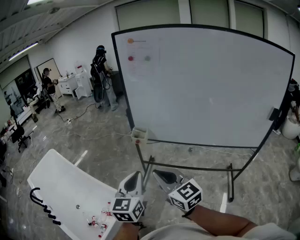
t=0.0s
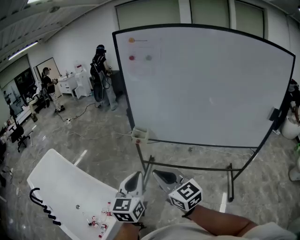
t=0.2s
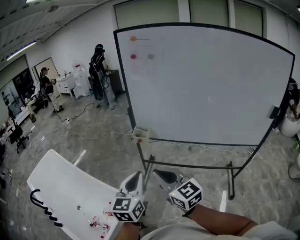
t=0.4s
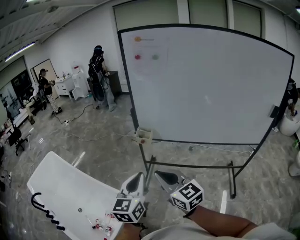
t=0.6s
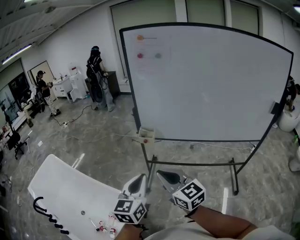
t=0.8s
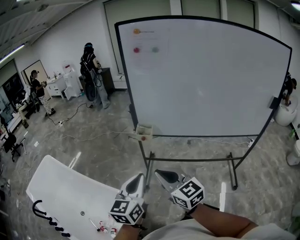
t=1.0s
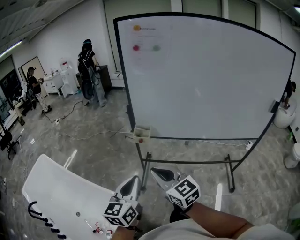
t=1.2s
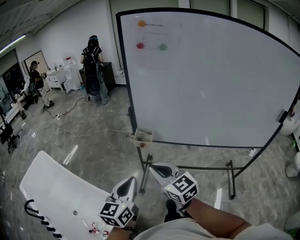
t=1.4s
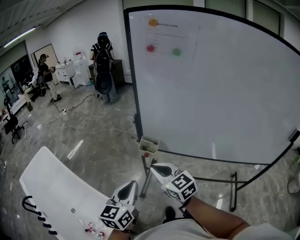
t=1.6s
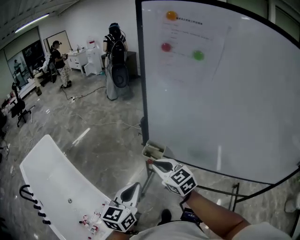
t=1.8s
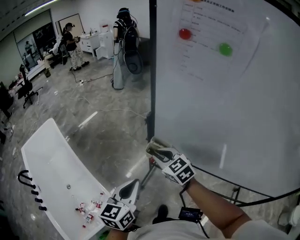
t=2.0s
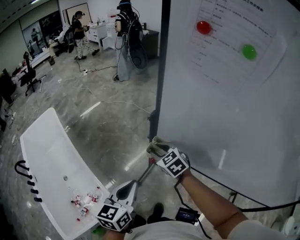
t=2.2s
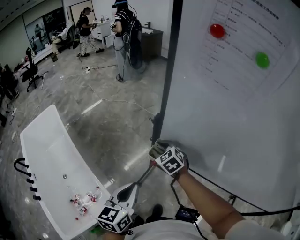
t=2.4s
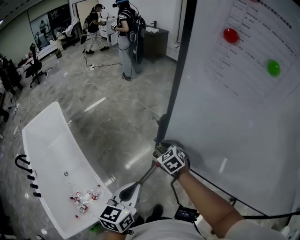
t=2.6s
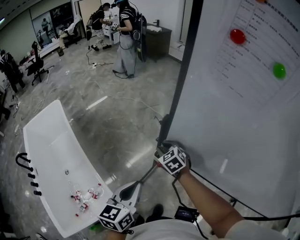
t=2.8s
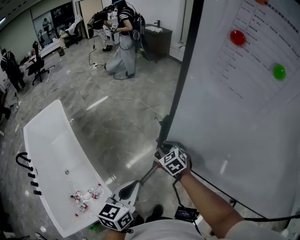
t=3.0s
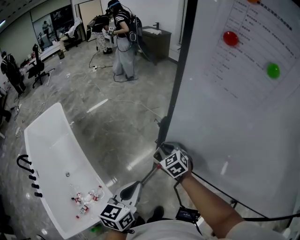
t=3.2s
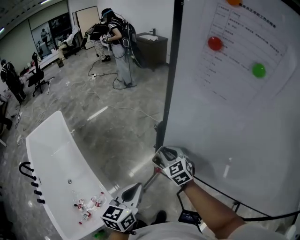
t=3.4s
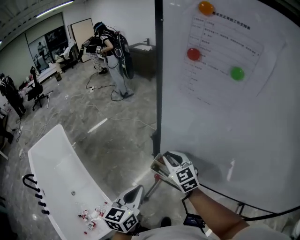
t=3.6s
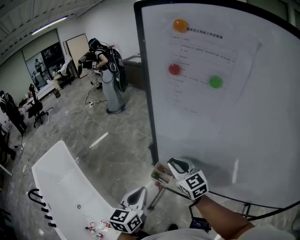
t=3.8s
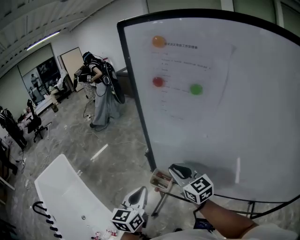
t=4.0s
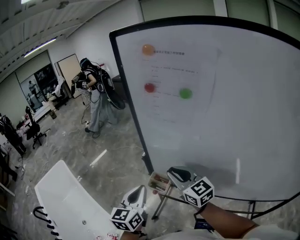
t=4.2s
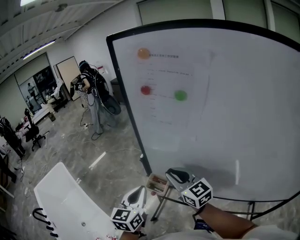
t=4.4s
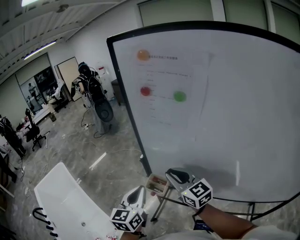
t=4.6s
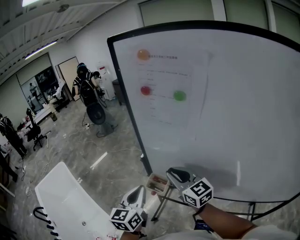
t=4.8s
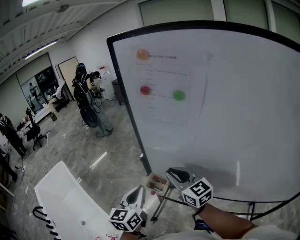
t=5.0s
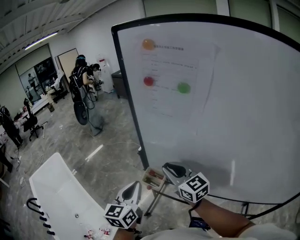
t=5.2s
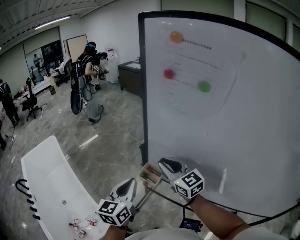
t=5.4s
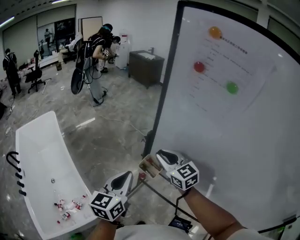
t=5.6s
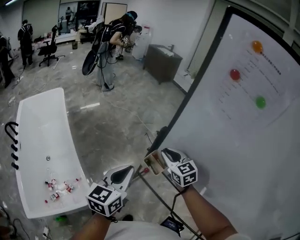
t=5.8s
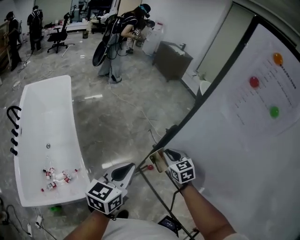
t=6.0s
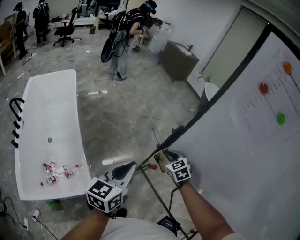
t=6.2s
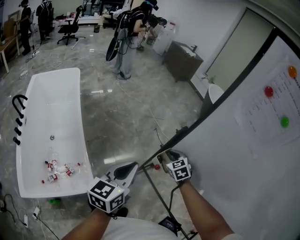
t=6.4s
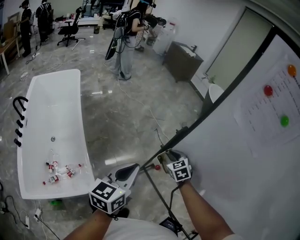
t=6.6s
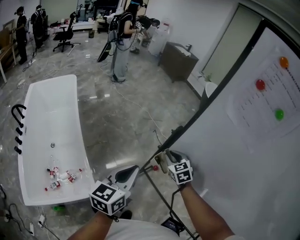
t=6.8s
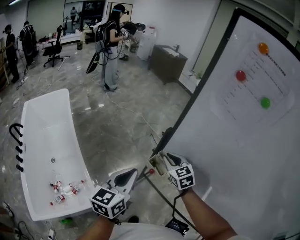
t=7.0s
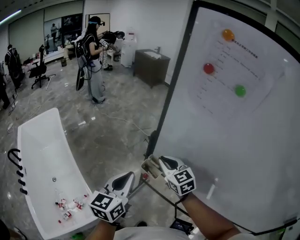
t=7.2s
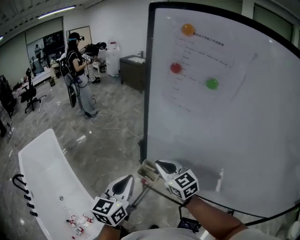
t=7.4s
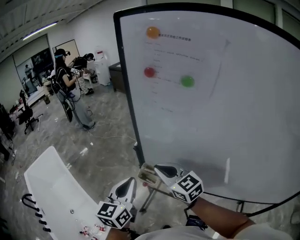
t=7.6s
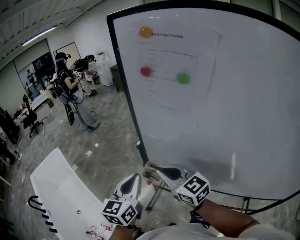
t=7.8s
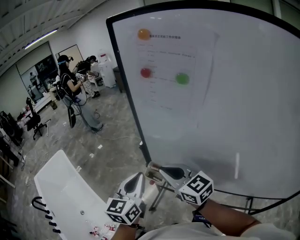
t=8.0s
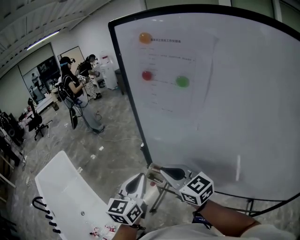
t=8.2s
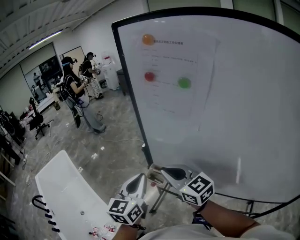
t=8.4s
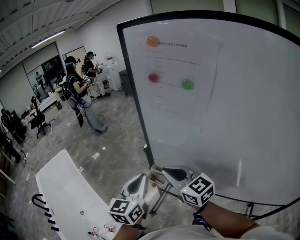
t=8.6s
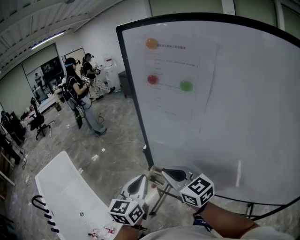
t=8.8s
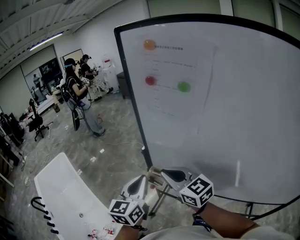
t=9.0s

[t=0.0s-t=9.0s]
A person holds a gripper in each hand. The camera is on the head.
t=0.0s to t=1.6s: The right gripper is displaced forward by some 30 cm. Meanwhile the left gripper travels forward and to the left by roughly 25 cm.
t=1.6s to t=3.0s: The left gripper travels forward and downward by approximately 15 cm, while the right gripper is displaced forward and downward by roughly 35 cm, and turns by roughly 40 degrees.
t=3.0s to t=4.4s: The left gripper shifts approximately 15 cm upward and to the right; the right gripper goes approximately 30 cm upward, backward and to the right, and angles its fingers upward, by roughly 40 degrees.
t=4.4s to t=6.0s: The left gripper is displaced to the left and downward by about 10 cm; the right gripper shifts some 20 cm downward, forward and to the left, and rotates roughly 40 degrees.
t=6.0s to t=7.6s: The right gripper moves upward and backward, some 20 cm, and rotates approximately 30 degrees; the left gripper travels to the right and upward by some 10 cm.
t=7.6s to t=9.0s: The right gripper moves approximately 5 cm.

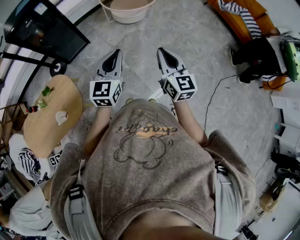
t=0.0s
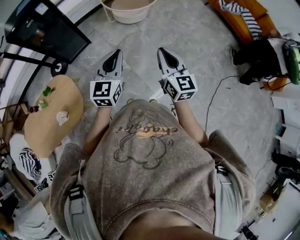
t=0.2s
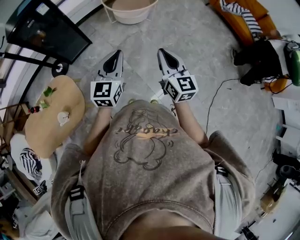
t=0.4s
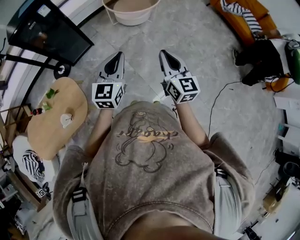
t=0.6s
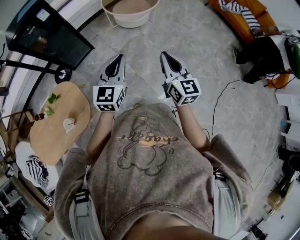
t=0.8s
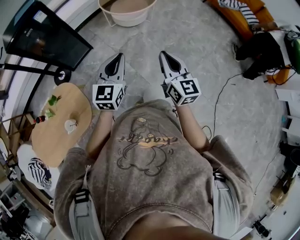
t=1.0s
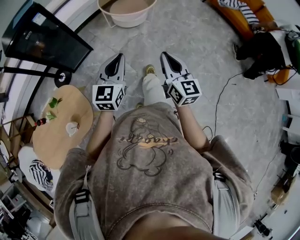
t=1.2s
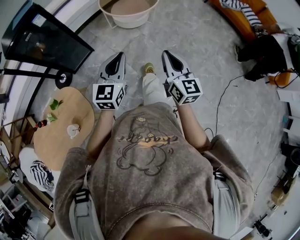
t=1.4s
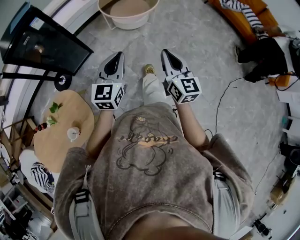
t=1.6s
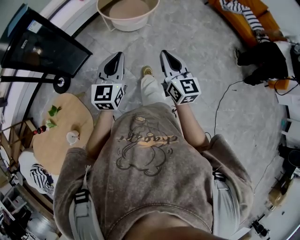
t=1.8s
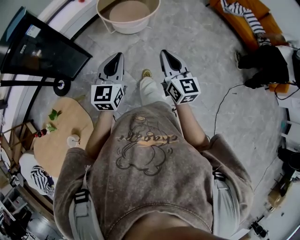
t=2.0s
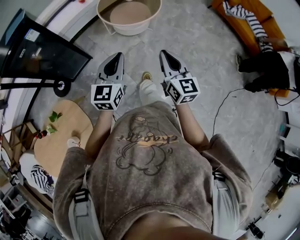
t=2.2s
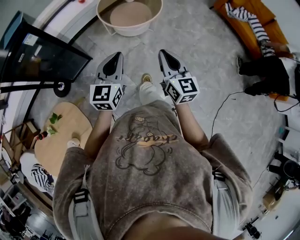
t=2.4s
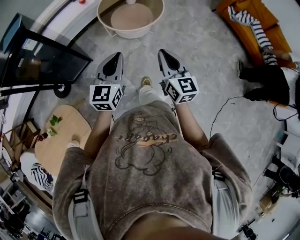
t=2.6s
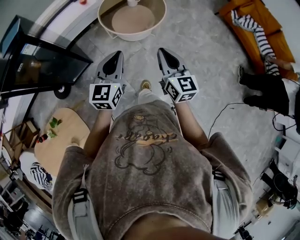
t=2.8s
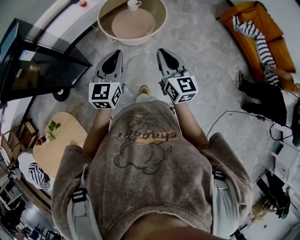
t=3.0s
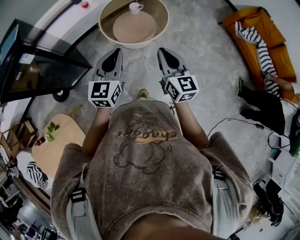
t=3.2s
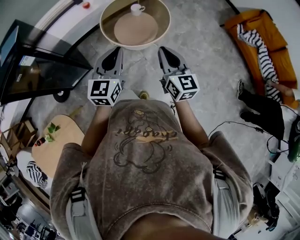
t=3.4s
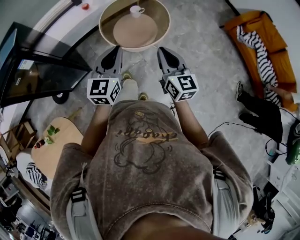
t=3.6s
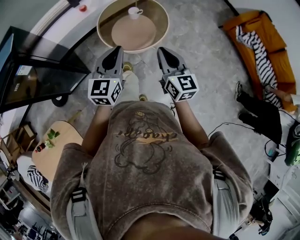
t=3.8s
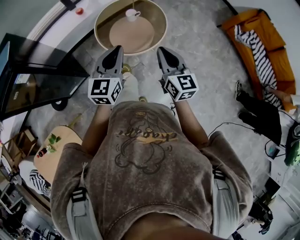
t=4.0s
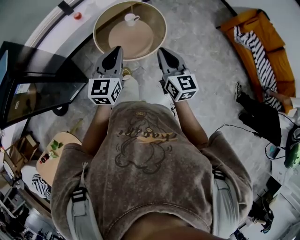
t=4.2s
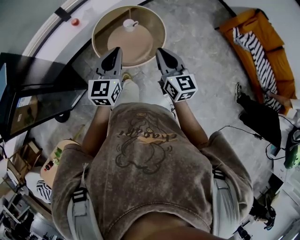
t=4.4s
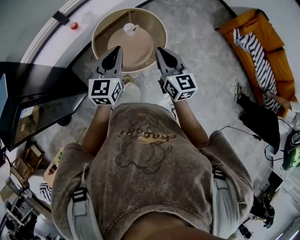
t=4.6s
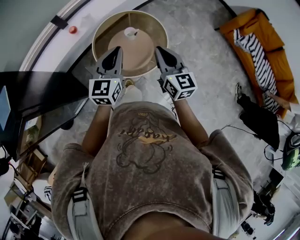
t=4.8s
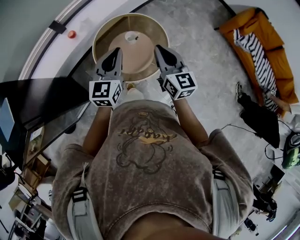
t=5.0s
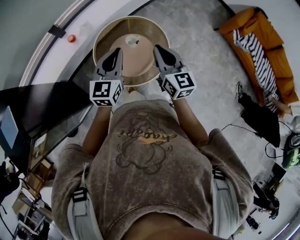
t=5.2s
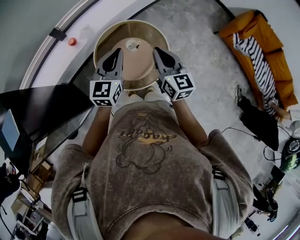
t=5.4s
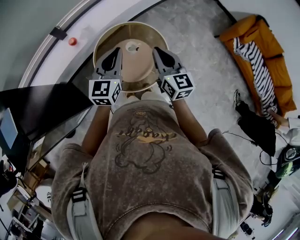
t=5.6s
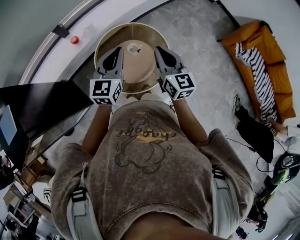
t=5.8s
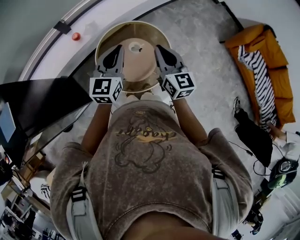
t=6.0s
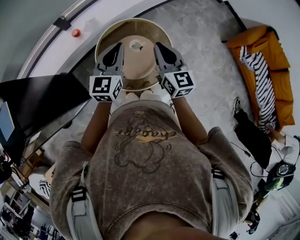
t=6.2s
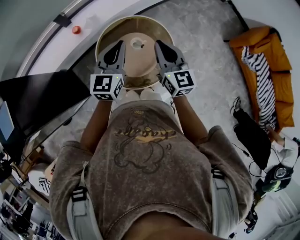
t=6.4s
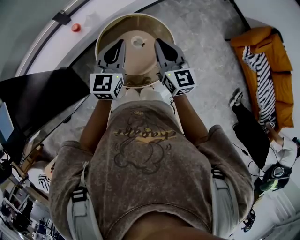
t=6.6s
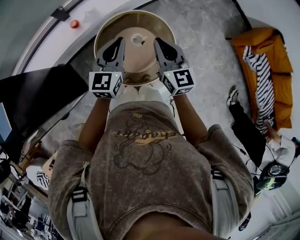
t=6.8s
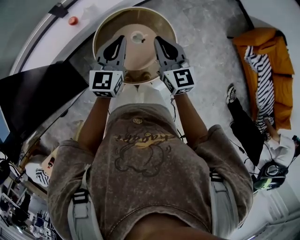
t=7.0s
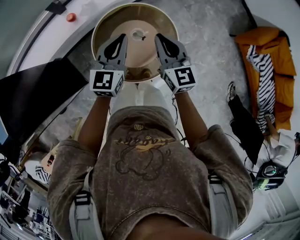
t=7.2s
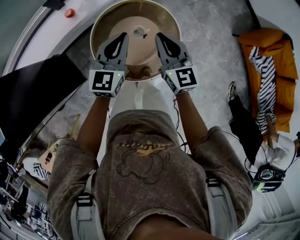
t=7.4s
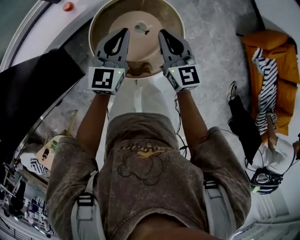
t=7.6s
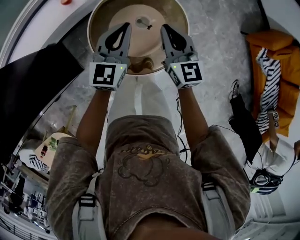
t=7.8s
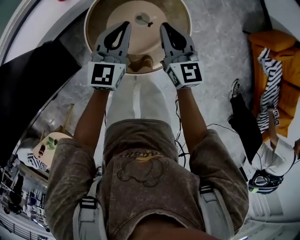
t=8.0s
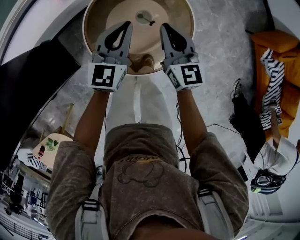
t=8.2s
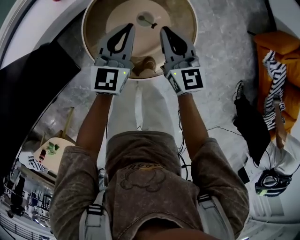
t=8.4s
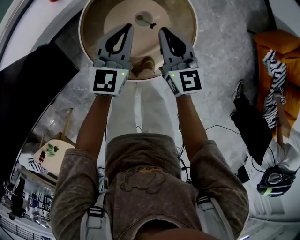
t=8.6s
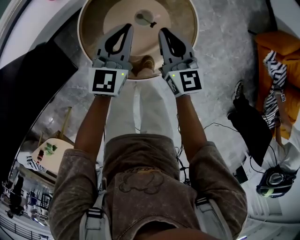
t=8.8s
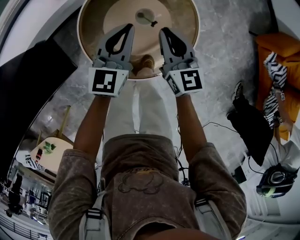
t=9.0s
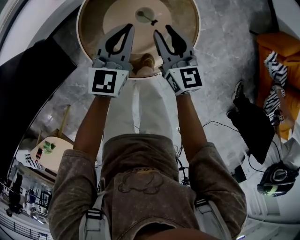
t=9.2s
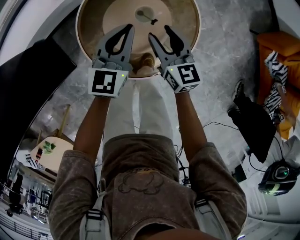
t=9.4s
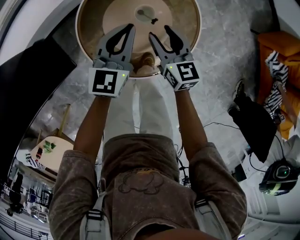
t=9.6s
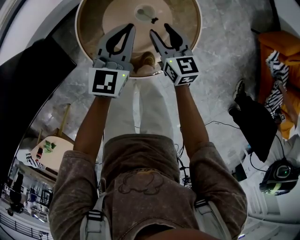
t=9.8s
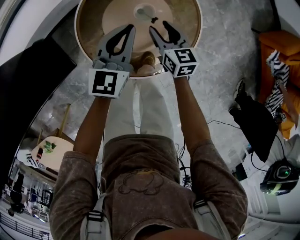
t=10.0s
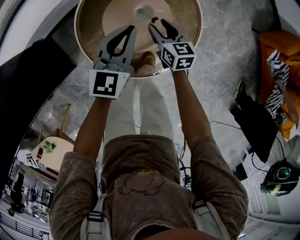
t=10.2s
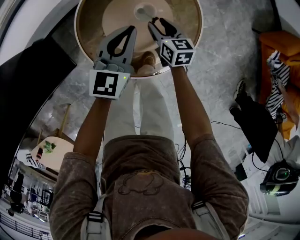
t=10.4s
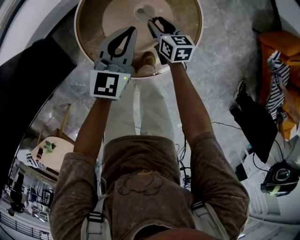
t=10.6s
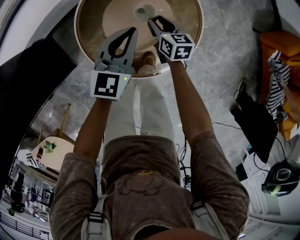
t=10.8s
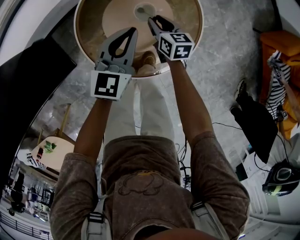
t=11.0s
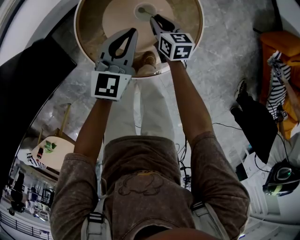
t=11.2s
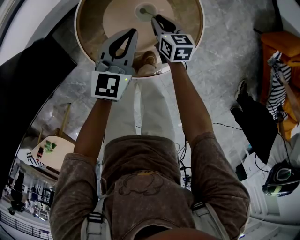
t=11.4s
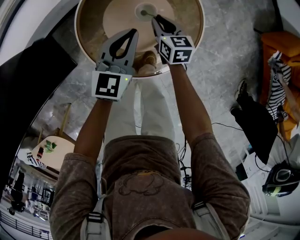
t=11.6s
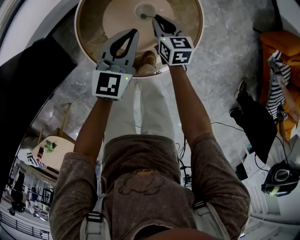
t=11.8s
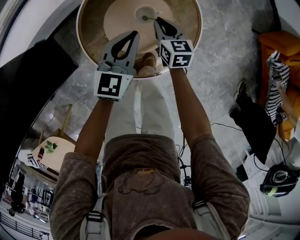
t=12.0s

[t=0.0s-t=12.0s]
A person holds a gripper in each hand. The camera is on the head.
t=0.0s to t=1.6s: The two grippers go some 10 cm forward.
t=1.6s to t=3.0s: The grippers both shift forward by about 30 cm.
t=3.0s to t=4.4s: The two grippers go some 25 cm forward.
t=4.4s to t=6.0s: Both grippers travel together forward, roughly 25 cm.
t=6.0s to t=7.6s: Both grippers move downward and forward, about 15 cm.
t=7.6s to t=9.0s: Both grippers move downward, about 15 cm.
t=9.0s to t=10.4s: The right gripper is displaced downward by about 15 cm, turns by about 20 degrees, and opens.
t=10.4s to t=12.0s: The right gripper closes its fingers.

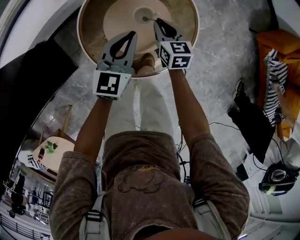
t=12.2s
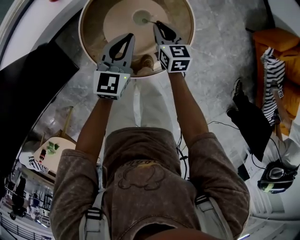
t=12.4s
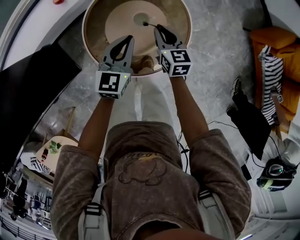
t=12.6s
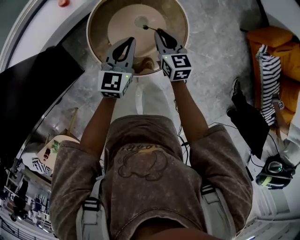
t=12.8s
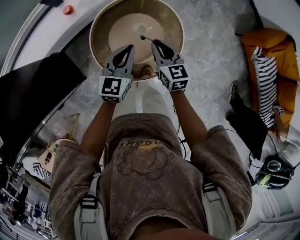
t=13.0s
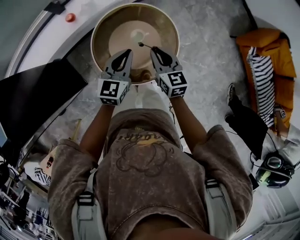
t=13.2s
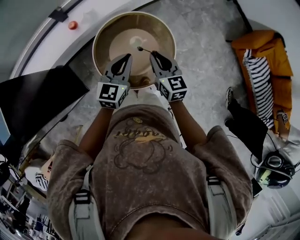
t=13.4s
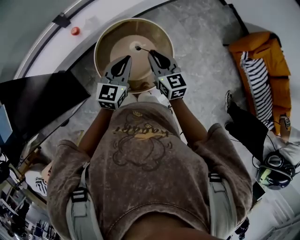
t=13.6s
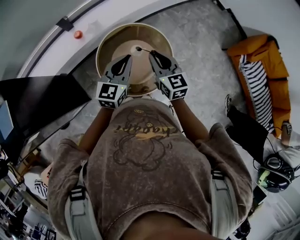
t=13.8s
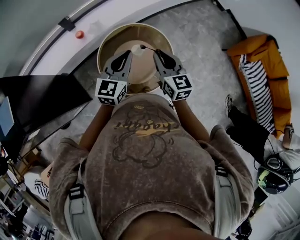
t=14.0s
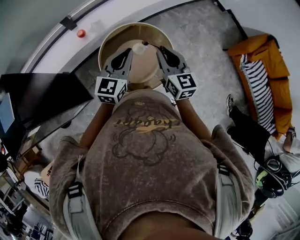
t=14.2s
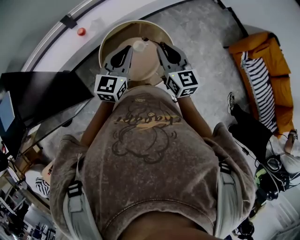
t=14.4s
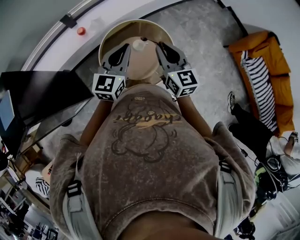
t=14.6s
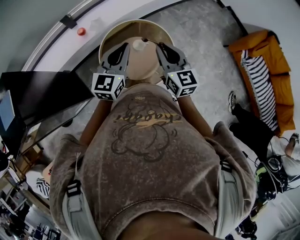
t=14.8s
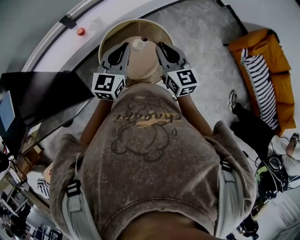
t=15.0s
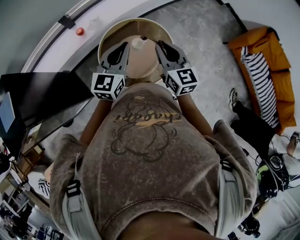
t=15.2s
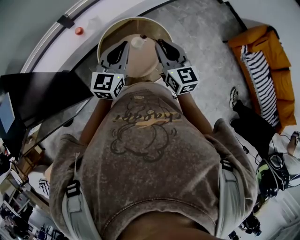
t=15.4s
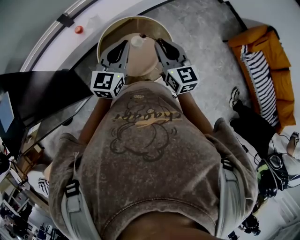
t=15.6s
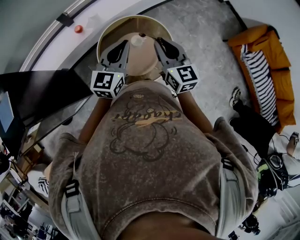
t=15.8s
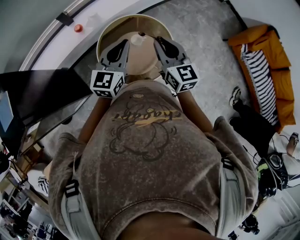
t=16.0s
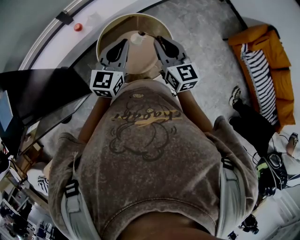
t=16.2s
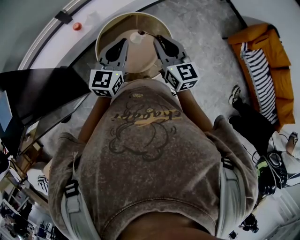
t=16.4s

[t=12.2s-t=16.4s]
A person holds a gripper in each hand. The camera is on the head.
t=12.2s to t=13.6s: Both grippers travel together upward, about 25 cm.
t=13.6s to t=15.0s: Both grippers move upward, about 10 cm.
t=15.0s to t=16.4s: Neither gripper changes place.
